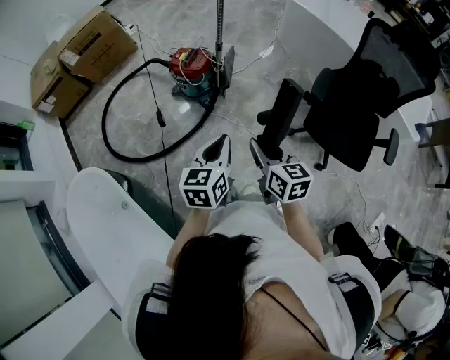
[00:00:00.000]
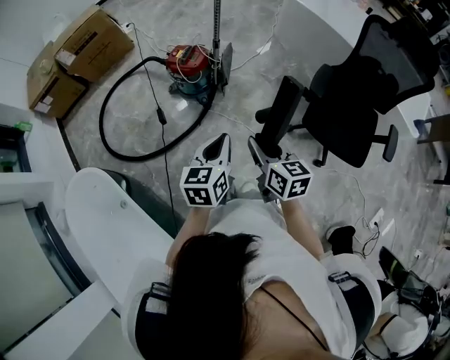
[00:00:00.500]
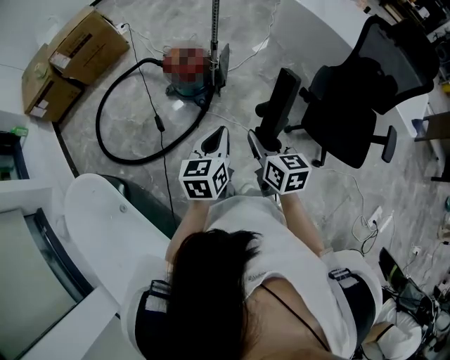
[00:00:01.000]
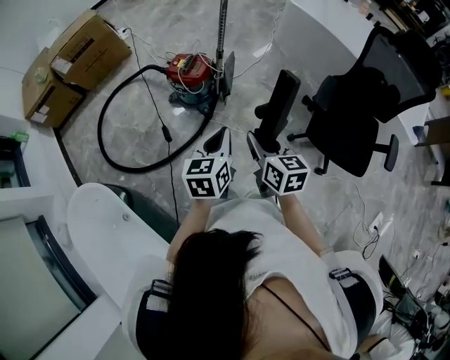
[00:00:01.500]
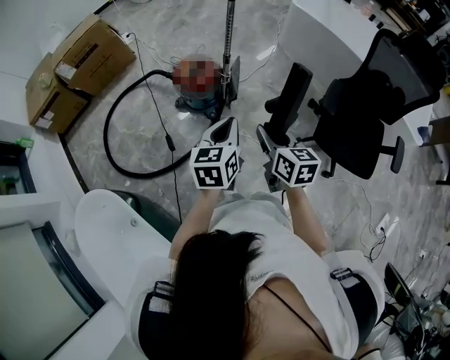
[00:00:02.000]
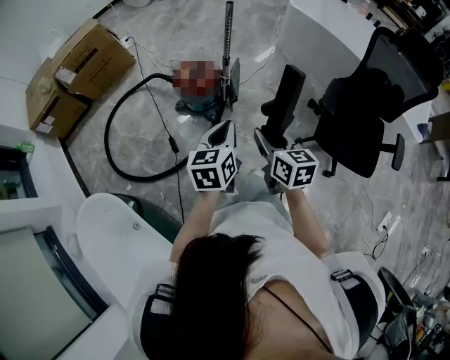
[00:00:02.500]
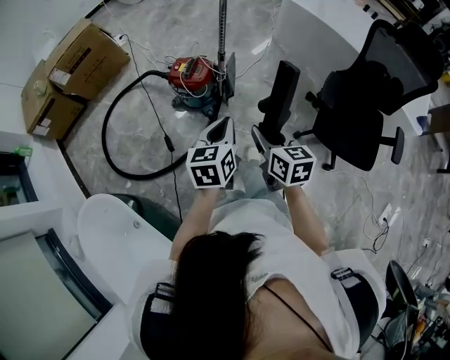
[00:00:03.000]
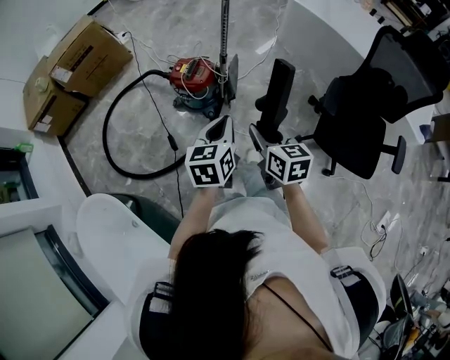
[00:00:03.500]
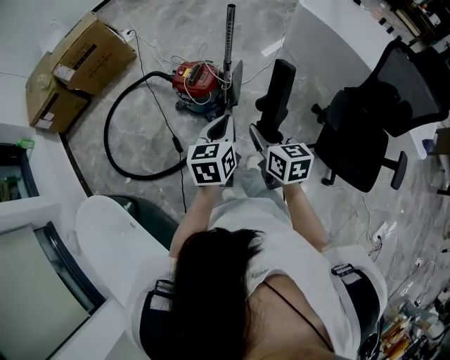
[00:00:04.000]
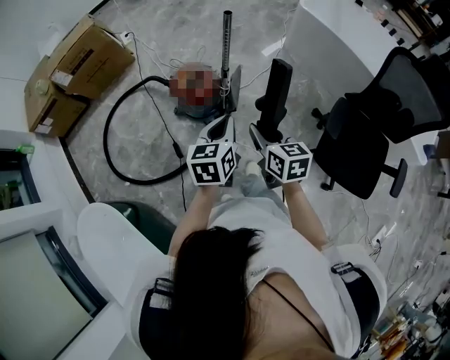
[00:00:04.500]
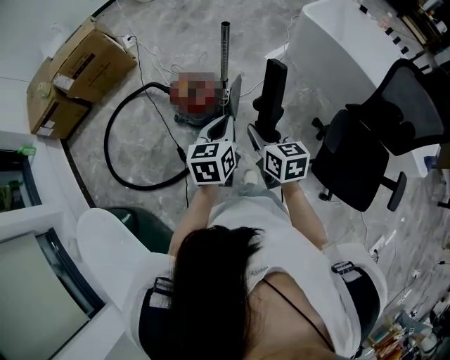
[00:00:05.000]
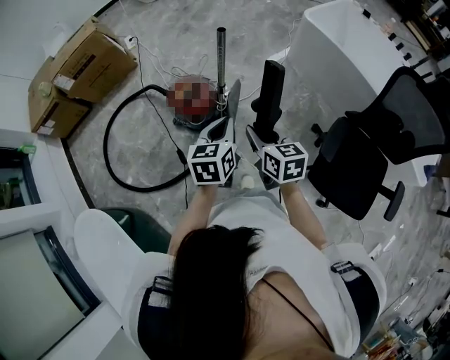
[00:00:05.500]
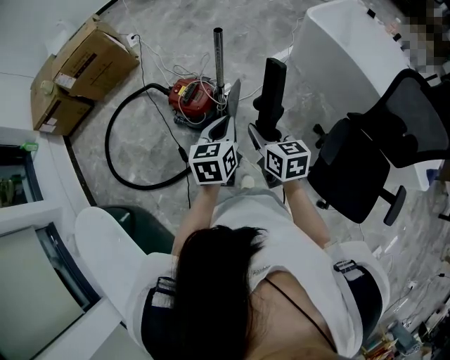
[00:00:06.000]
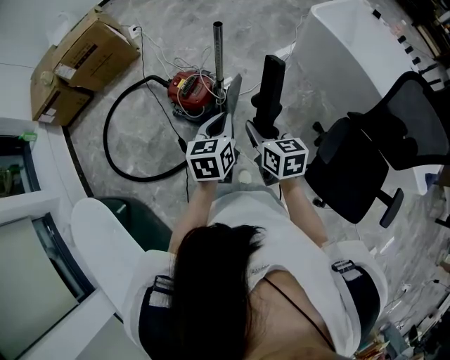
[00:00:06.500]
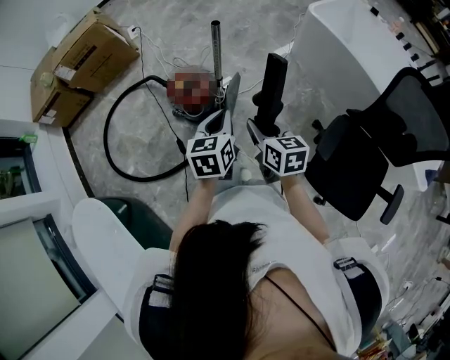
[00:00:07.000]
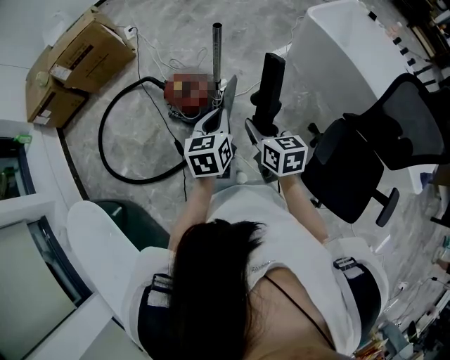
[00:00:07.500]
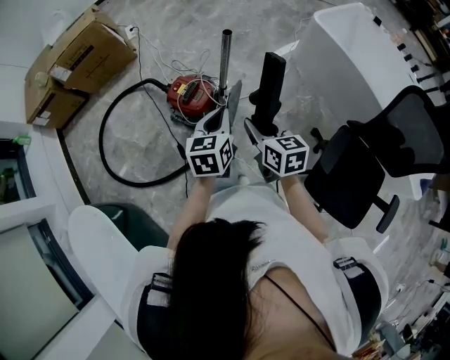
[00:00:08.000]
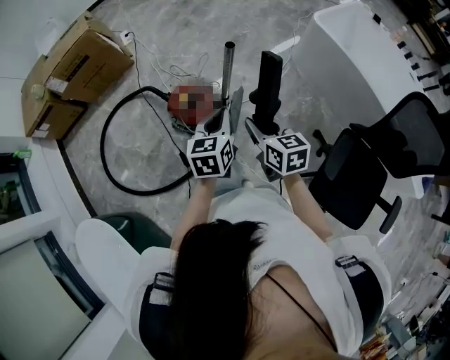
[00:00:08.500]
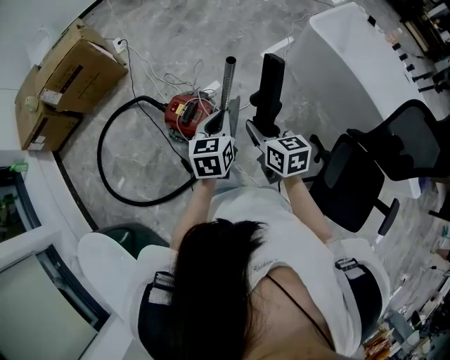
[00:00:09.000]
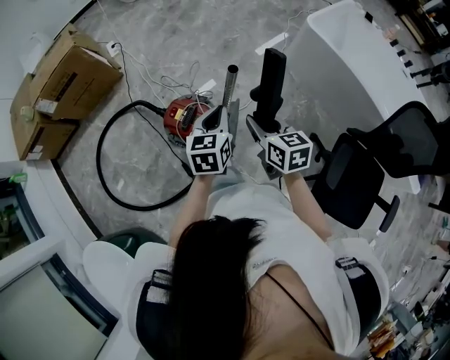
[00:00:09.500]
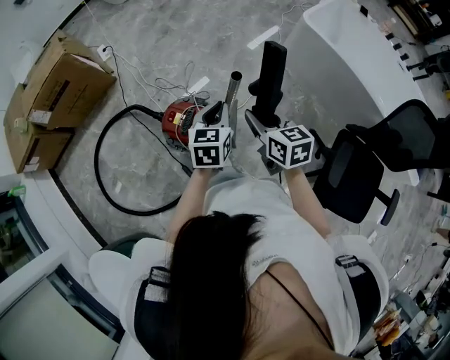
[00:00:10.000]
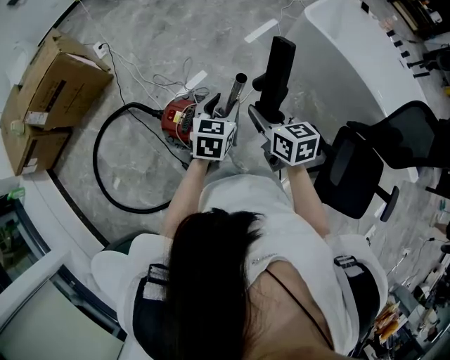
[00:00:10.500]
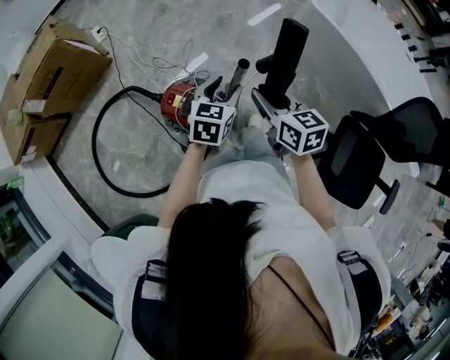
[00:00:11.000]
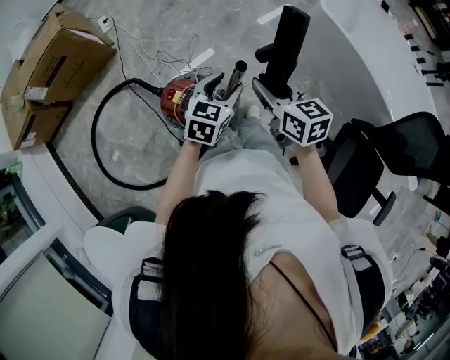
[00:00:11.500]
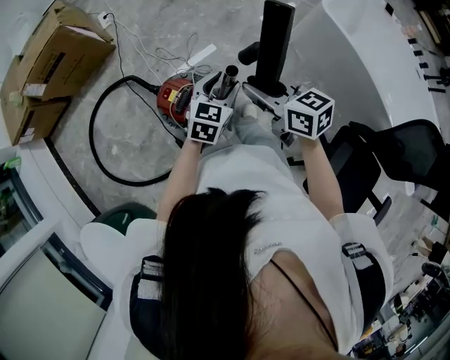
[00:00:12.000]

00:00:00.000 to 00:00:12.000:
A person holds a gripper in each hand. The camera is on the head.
00:00:00.000 to 00:00:02.000: The two grippers go some 15 cm forward.
00:00:02.000 to 00:00:04.000: The two grippers go approximately 10 cm forward.
00:00:04.000 to 00:00:06.000: Both grippers move forward and to the right, some 15 cm.
00:00:06.000 to 00:00:08.000: Both grippers move forward, roughly 5 cm.
00:00:08.000 to 00:00:10.000: Both grippers travel together forward, some 20 cm.
00:00:10.000 to 00:00:12.000: The two grippers go about 5 cm forward. The right gripper rotates about 20 degrees. The left gripper opens.

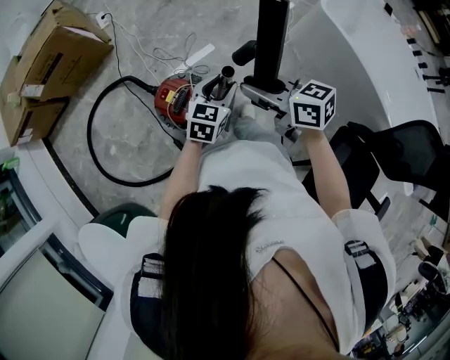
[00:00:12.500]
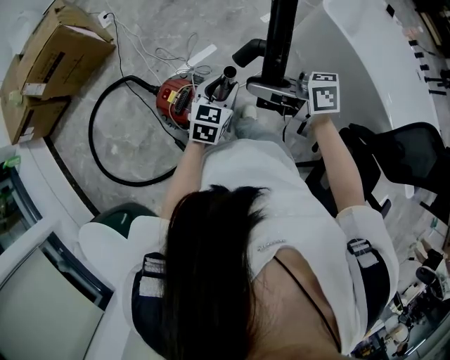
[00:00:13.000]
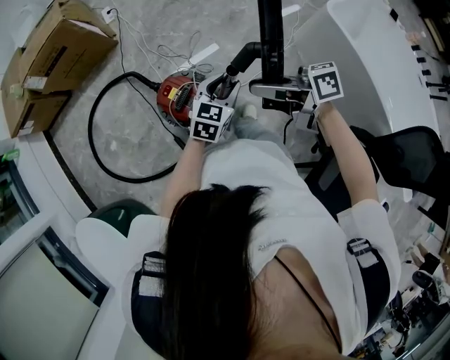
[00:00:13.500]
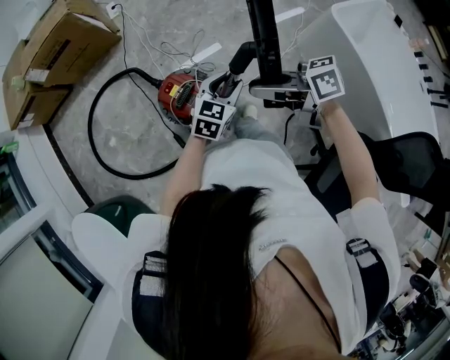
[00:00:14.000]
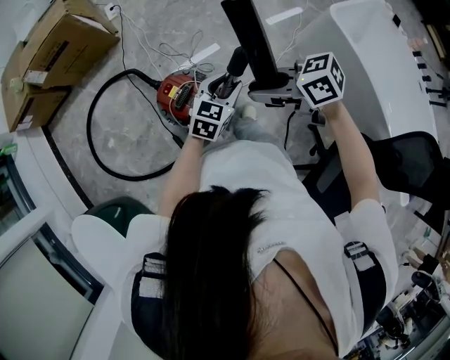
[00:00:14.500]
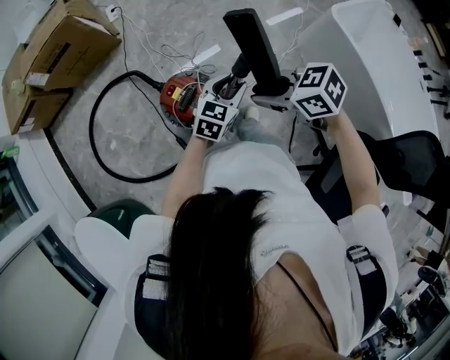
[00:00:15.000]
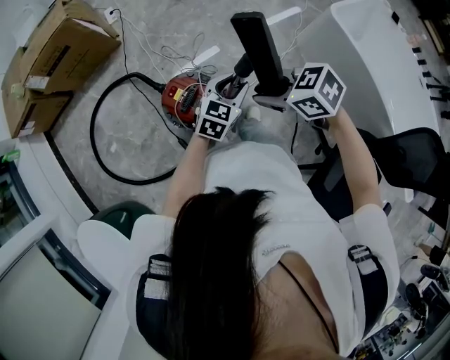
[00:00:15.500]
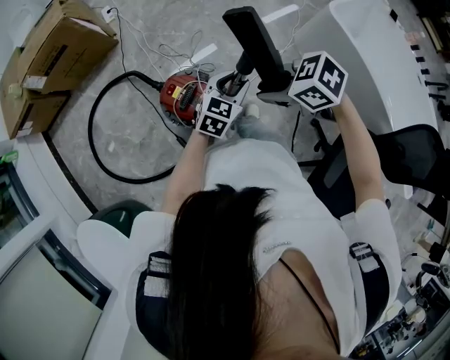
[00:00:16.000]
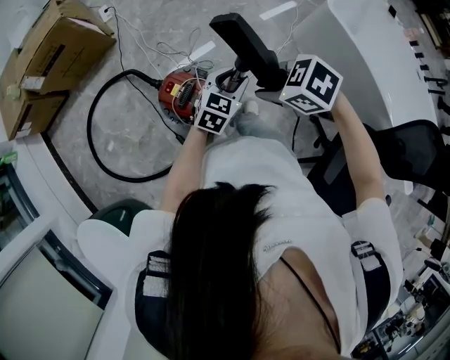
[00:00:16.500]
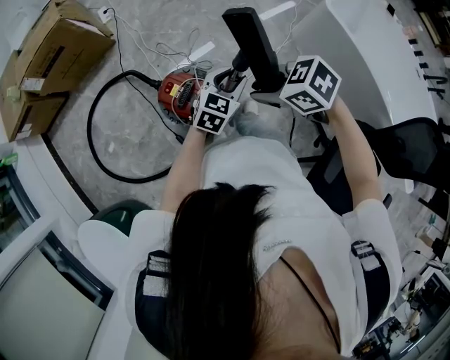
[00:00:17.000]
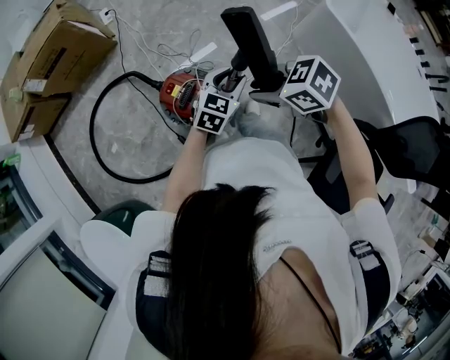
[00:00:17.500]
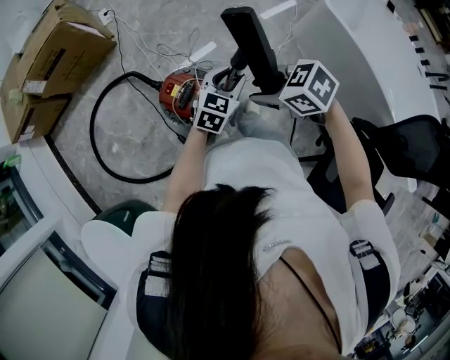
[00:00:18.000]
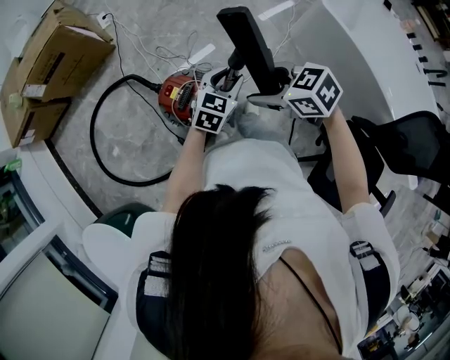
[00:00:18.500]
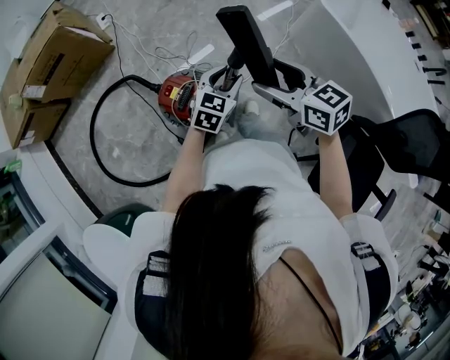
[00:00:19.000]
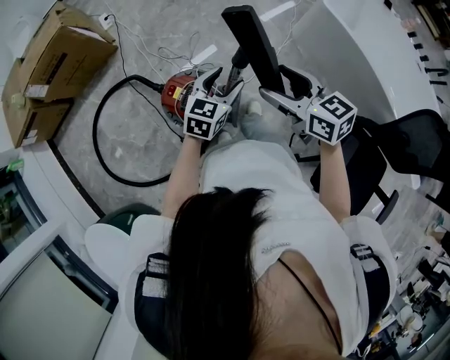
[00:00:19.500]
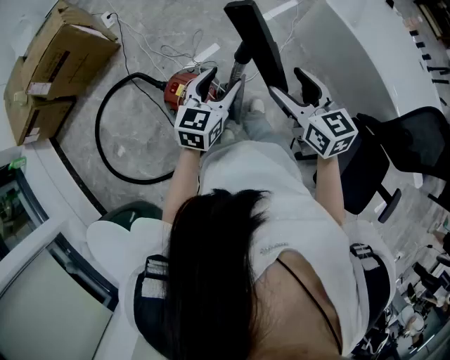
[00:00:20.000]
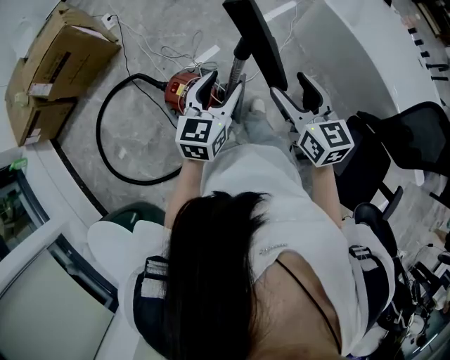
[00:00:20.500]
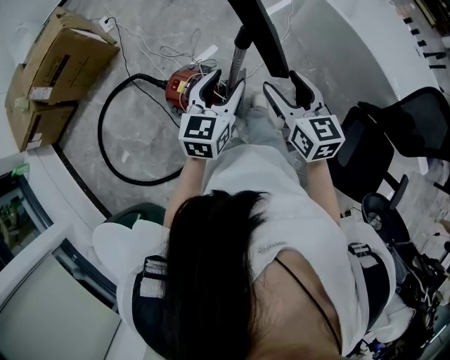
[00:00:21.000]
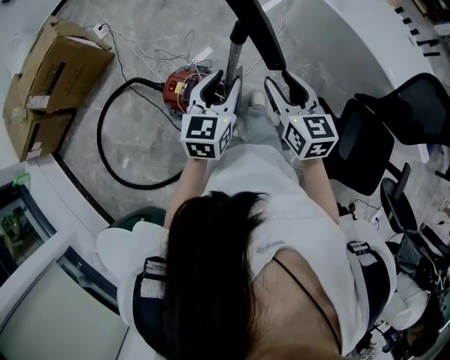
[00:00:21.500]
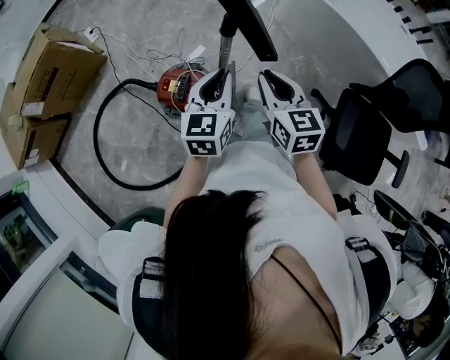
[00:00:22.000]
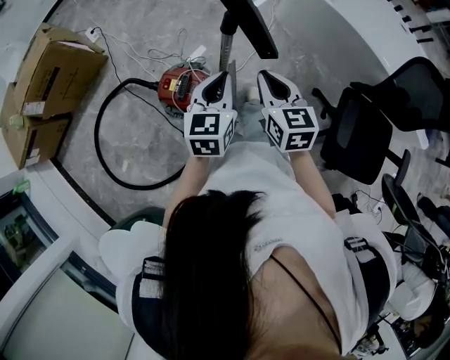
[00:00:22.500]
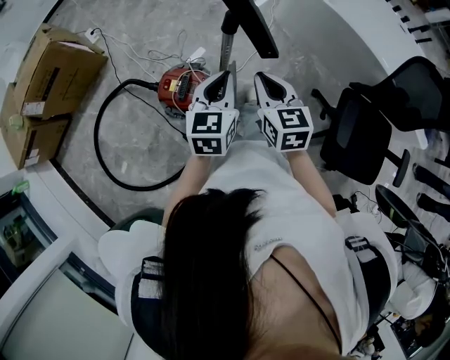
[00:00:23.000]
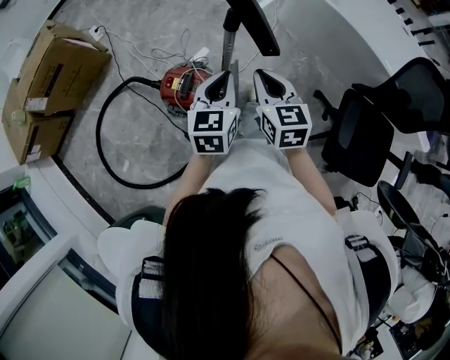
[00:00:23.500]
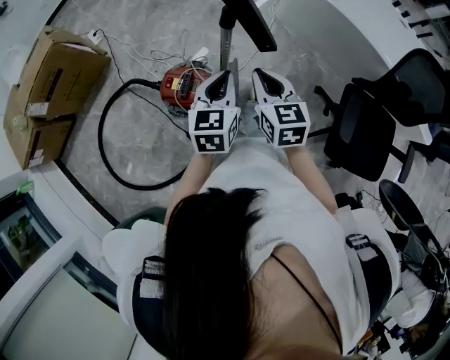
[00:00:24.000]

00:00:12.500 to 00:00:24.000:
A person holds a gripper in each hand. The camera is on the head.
00:00:12.500 to 00:00:14.500: The right gripper rotates about 30 degrees.
00:00:14.500 to 00:00:16.500: The right gripper tips its fingers downward by some 30 degrees.
00:00:16.500 to 00:00:18.500: The right gripper opens.
00:00:18.500 to 00:00:20.000: The left gripper travels upward by some 5 cm, and opens. The right gripper heads to the right, covering roughly 5 cm, and swivels some 50 degrees.
00:00:20.000 to 00:00:22.000: The two grippers go approximately 5 cm backward. The right gripper closes; the left gripper closes.
00:00:22.000 to 00:00:24.000: The grippers move only a little.

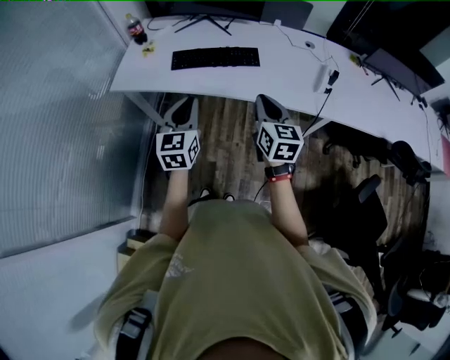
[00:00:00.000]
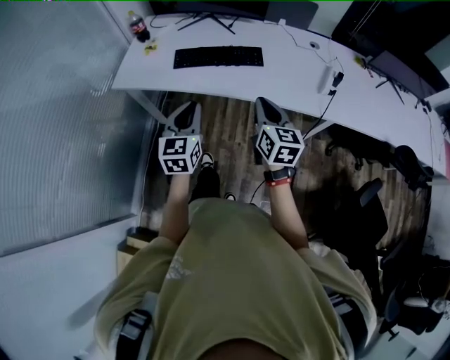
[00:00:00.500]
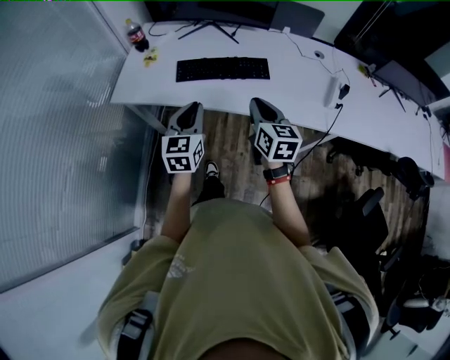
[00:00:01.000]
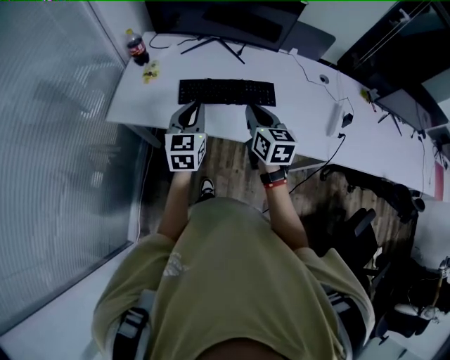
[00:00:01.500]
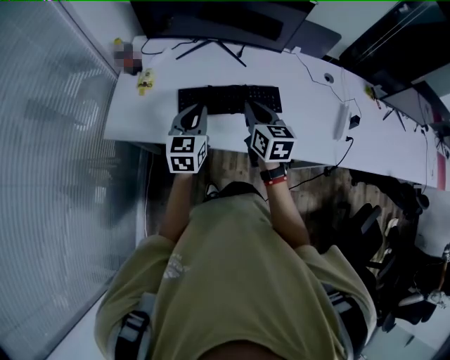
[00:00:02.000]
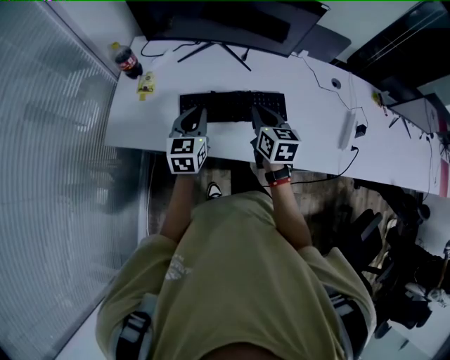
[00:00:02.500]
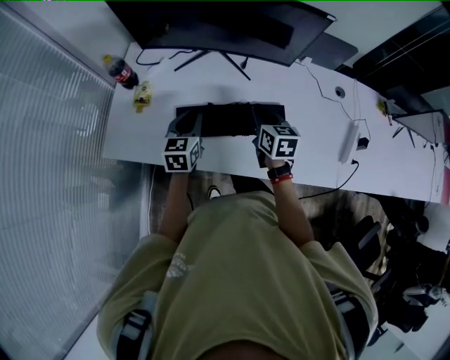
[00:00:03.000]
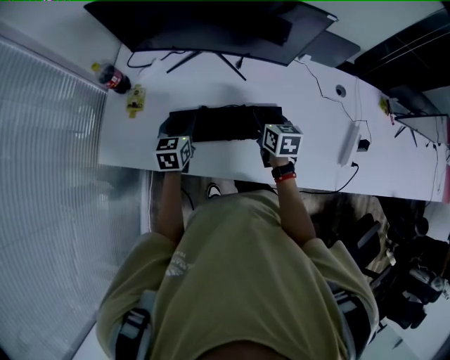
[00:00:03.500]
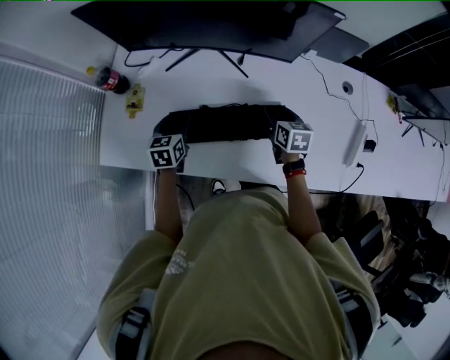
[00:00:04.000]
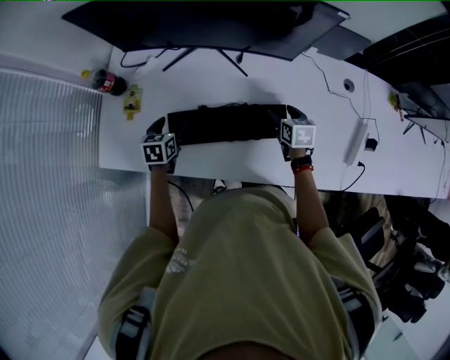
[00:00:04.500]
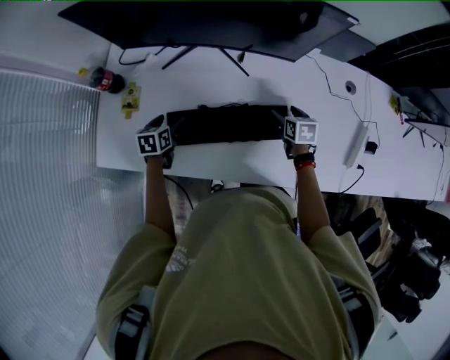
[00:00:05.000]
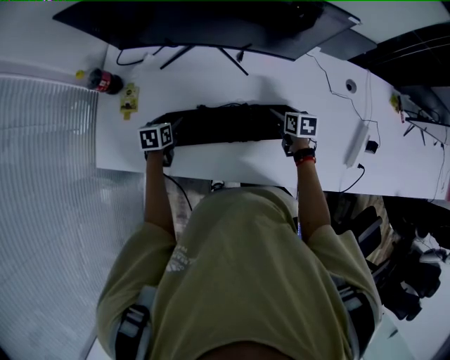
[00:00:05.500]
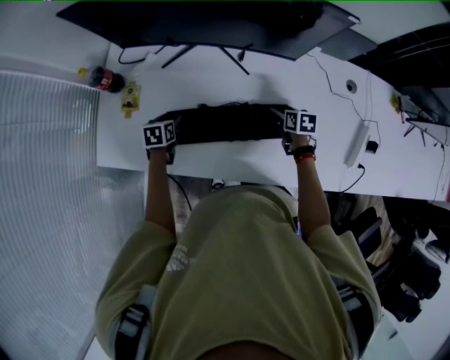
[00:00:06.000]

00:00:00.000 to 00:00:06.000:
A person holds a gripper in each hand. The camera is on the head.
00:00:00.000 to 00:00:02.000: The right gripper goes roughly 35 cm forward and to the left; the left gripper heads forward, covering some 30 cm.
00:00:02.000 to 00:00:04.000: The left gripper moves forward and downward, roughly 25 cm, changes its angle by some 20 degrees, and opens up, while the right gripper heads forward, downward and to the right, covering about 30 cm, rotates some 20 degrees, and opens its fingers.
00:00:04.000 to 00:00:06.000: Both grippers move downward, approximately 10 cm. The left gripper turns by roughly 20 degrees.
